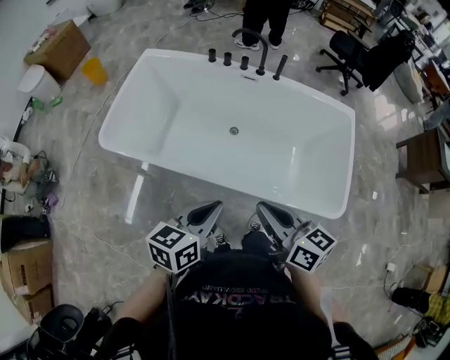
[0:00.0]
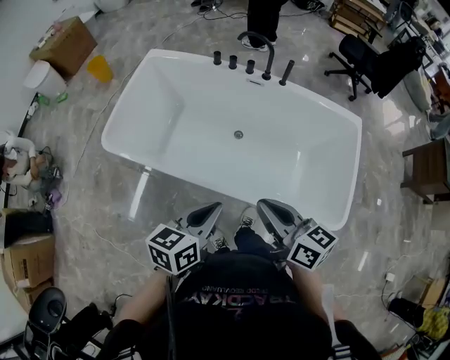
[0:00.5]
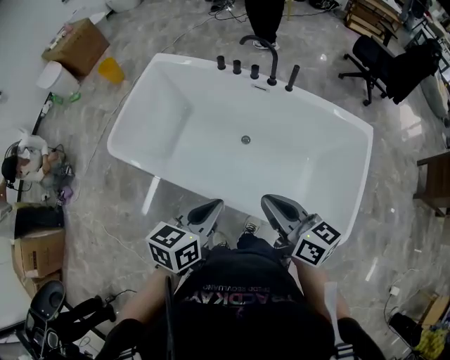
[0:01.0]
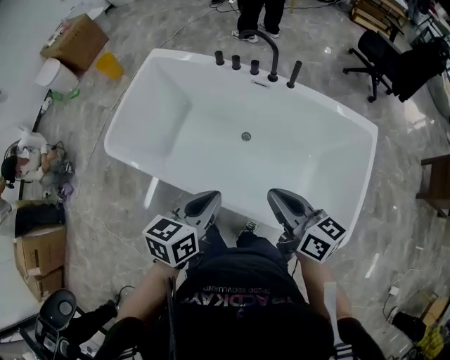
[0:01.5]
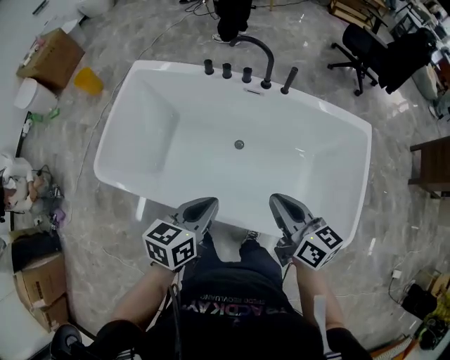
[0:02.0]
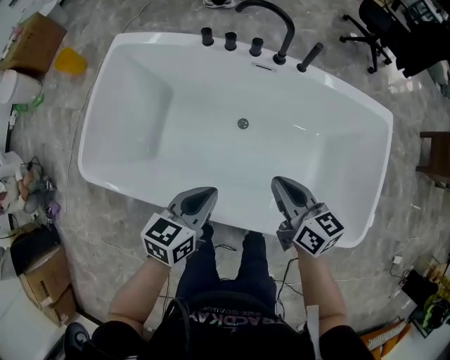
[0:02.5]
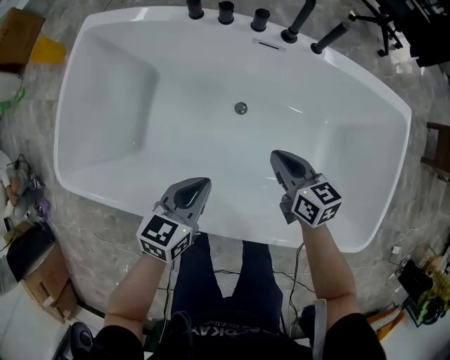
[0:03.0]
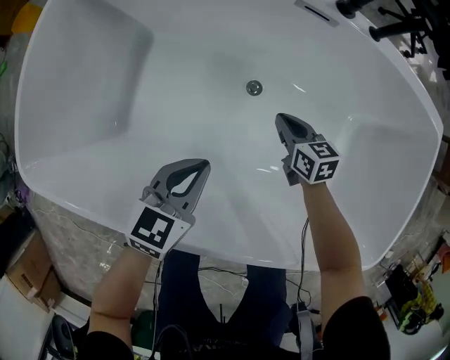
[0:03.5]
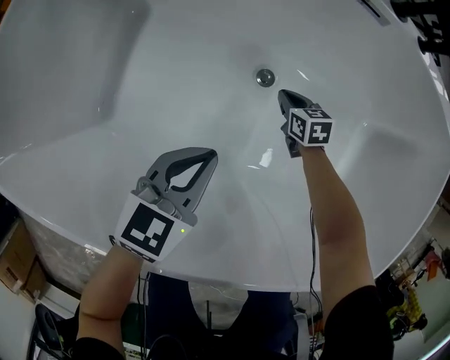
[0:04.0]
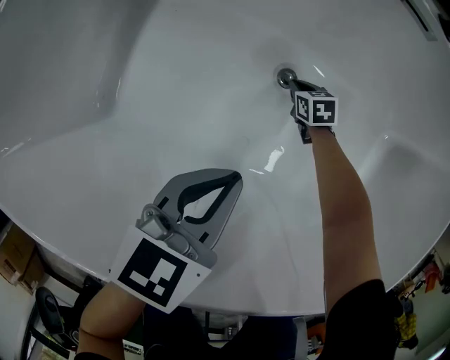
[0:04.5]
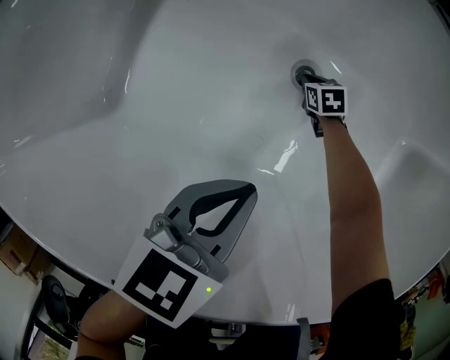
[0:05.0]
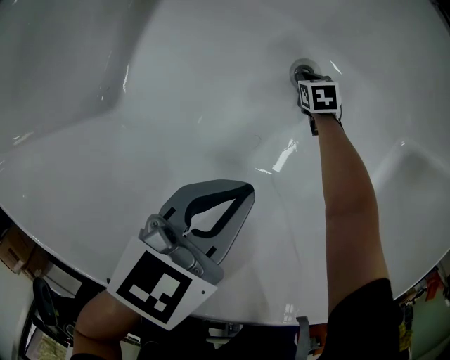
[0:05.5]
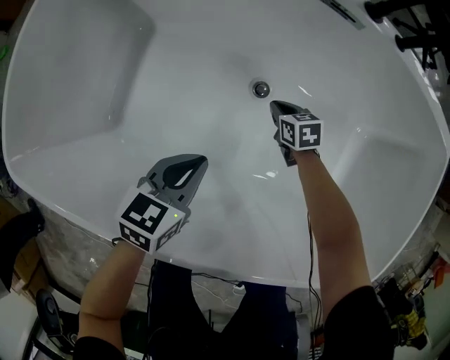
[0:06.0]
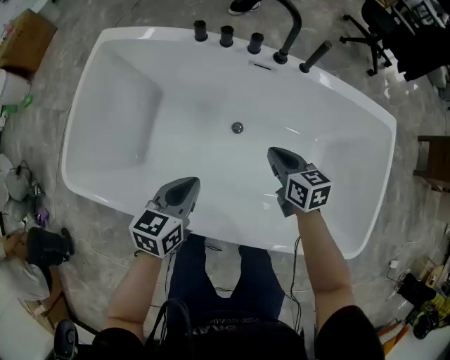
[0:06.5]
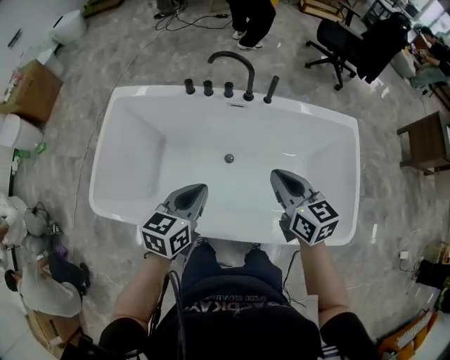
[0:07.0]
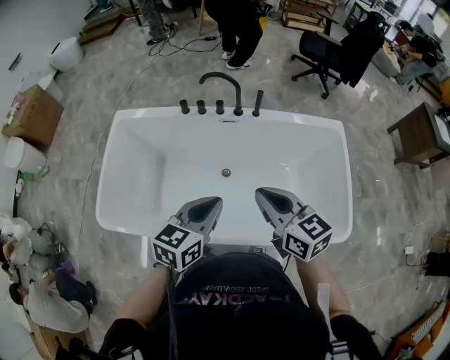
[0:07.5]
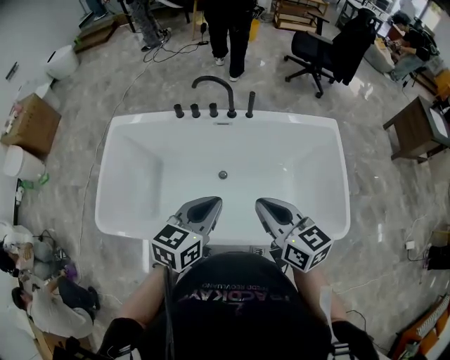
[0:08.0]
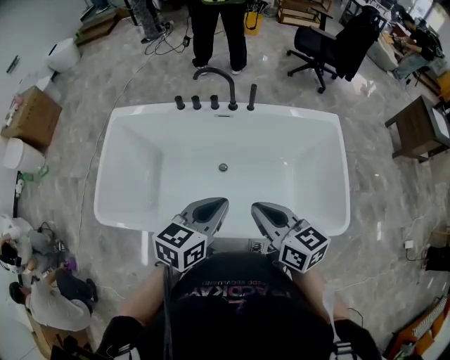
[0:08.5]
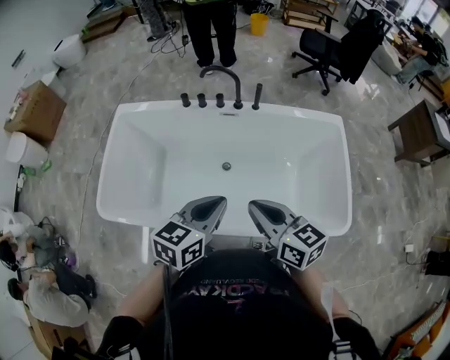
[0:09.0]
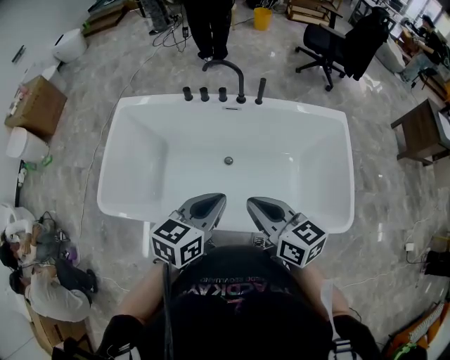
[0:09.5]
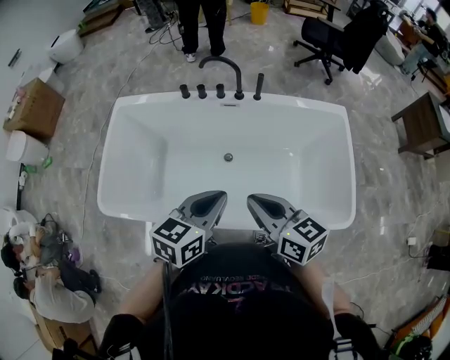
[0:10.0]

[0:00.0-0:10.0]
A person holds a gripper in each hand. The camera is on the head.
0:00.0 to 0:02.0: The grippers both shift forward by some 15 cm.
0:02.0 to 0:04.0: The left gripper moves downward and forward, some 35 cm; the right gripper travels downward and forward by roughly 70 cm, and tips its fingers downward by about 40 degrees.
0:04.0 to 0:06.0: The right gripper goes downward and returns, roughly 15 cm each way.
0:06.0 to 0:08.0: The left gripper goes about 40 cm upward, and changes its angle by approximately 20 degrees, while the right gripper heads upward, covering about 60 cm, and angles its fingers upward, by roughly 40 degrees.
0:08.0 to 0:10.0: There are only small adjustments of the grippers.

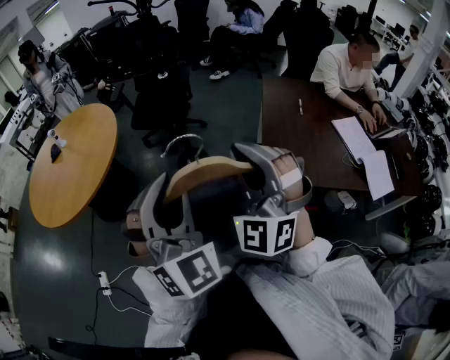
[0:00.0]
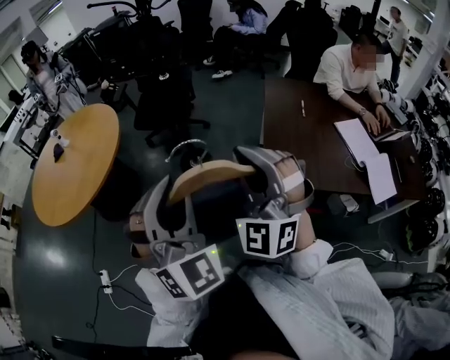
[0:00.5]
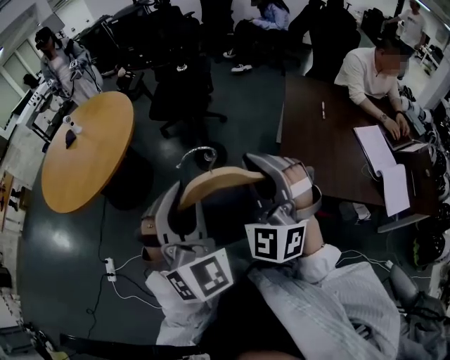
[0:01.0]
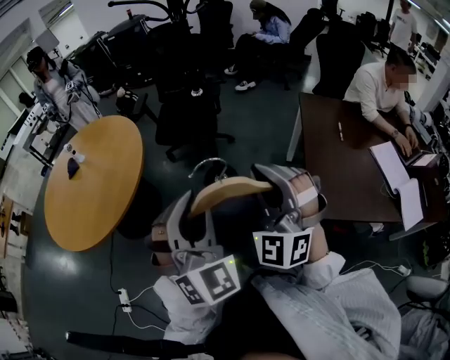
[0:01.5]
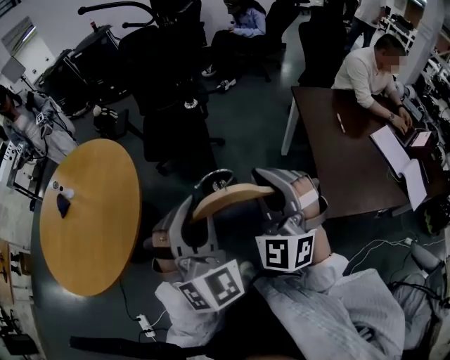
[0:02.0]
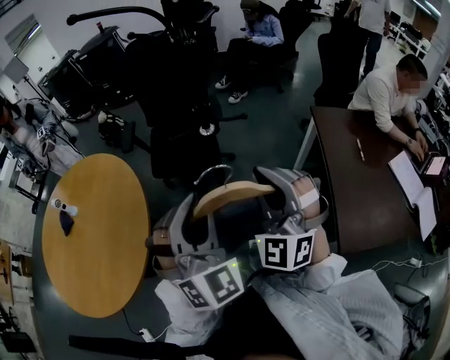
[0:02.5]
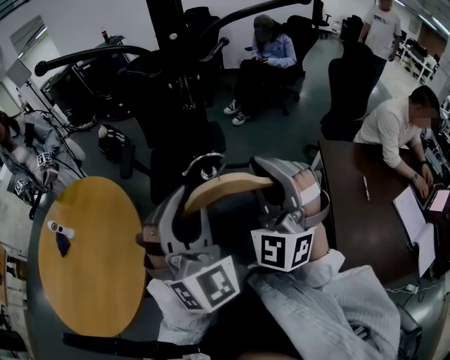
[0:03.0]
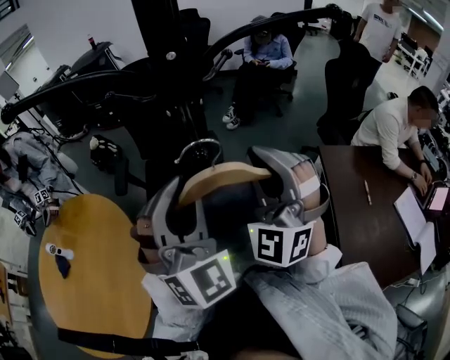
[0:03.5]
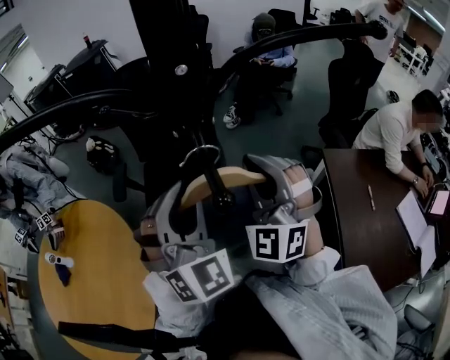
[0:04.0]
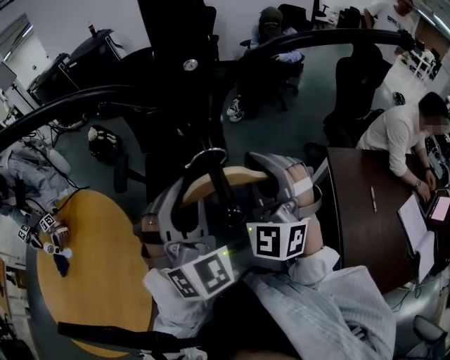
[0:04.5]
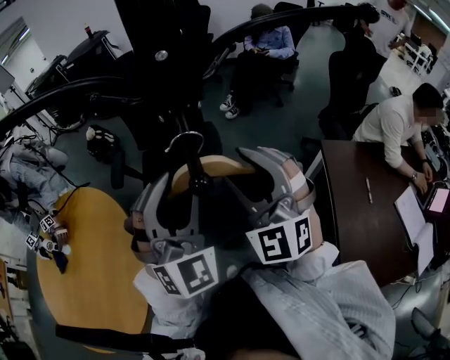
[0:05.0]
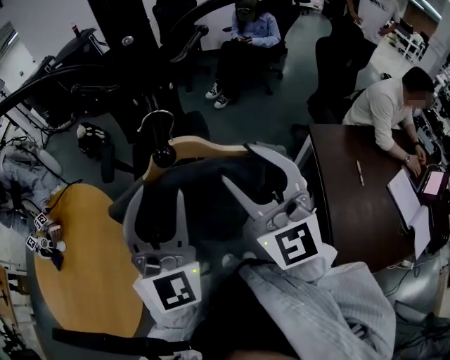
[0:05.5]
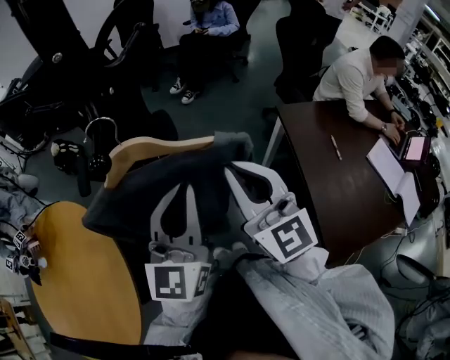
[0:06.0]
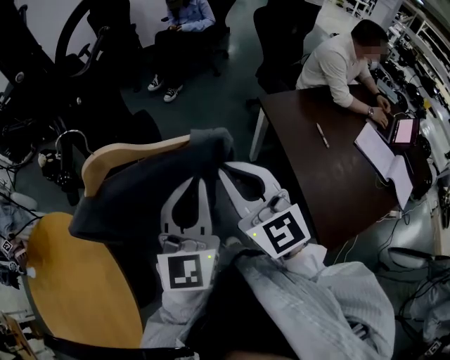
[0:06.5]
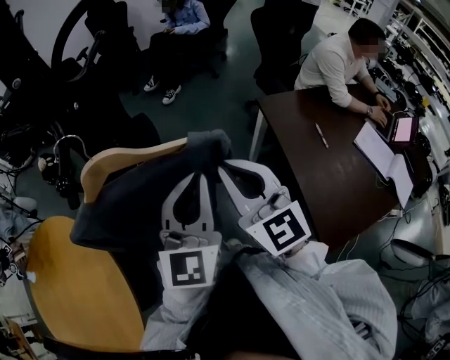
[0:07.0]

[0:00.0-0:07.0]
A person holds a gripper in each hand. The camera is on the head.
0:00.0 to 0:02.0: The two grippers go some 40 cm forward and to the left.
0:02.0 to 0:03.5: Both grippers are carried forward, some 50 cm.
0:03.5 to 0:05.0: The left gripper goes approximately 10 cm forward; the right gripper is displaced forward and to the left by roughly 10 cm, changes its angle by approximately 20 degrees, and opens.
0:05.0 to 0:07.0: The left gripper travels to the right and downward by approximately 25 cm, rotates around the line of its fingers by roughly 50 degrees, counterclockwise from behind, and closes up. The right gripper shifts roughly 20 cm to the right, backward and downward, rotates around the line of its fingers by approximately 50 degrees, clockwise from behind, and closes.

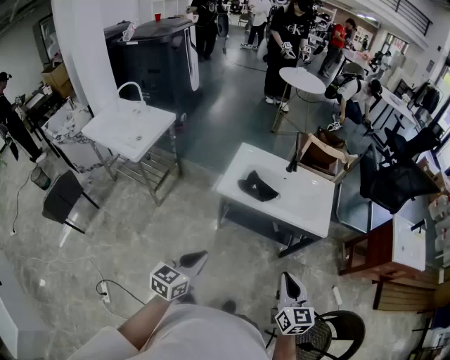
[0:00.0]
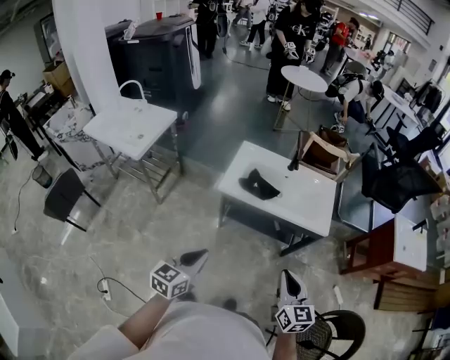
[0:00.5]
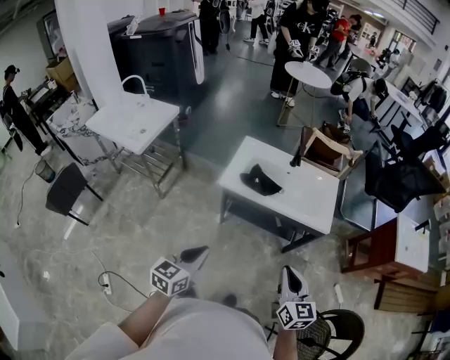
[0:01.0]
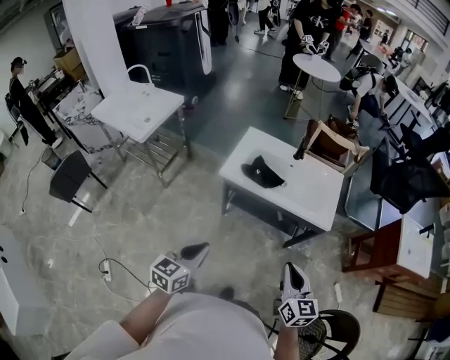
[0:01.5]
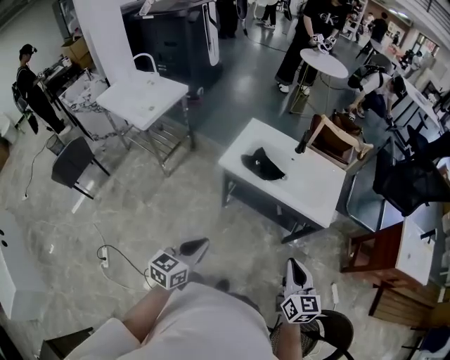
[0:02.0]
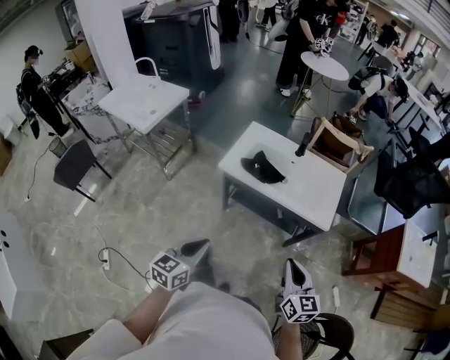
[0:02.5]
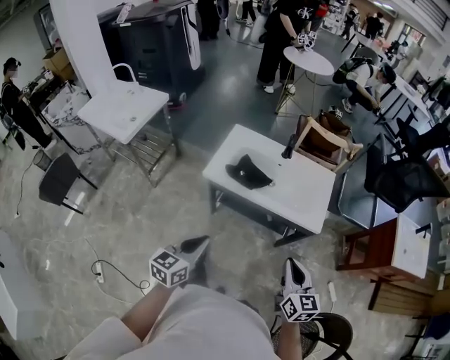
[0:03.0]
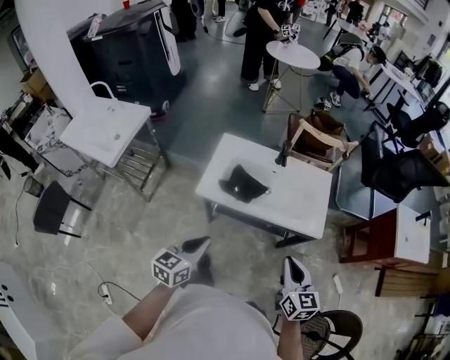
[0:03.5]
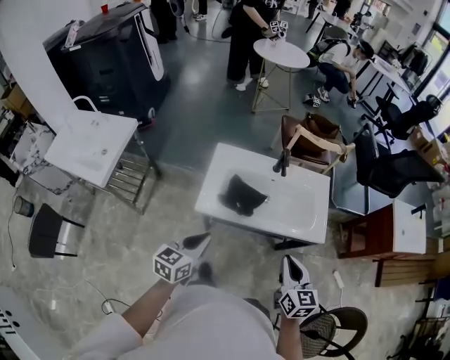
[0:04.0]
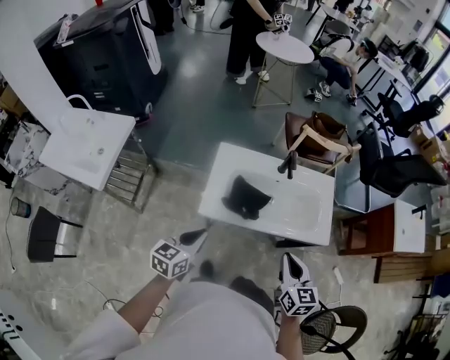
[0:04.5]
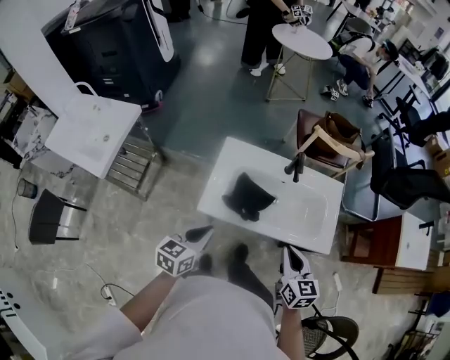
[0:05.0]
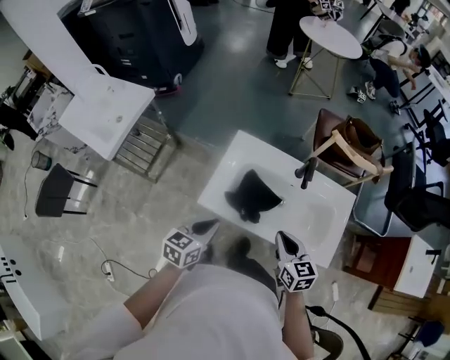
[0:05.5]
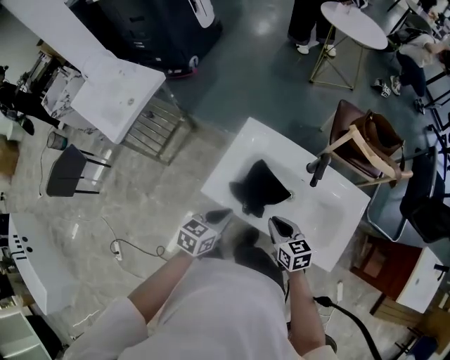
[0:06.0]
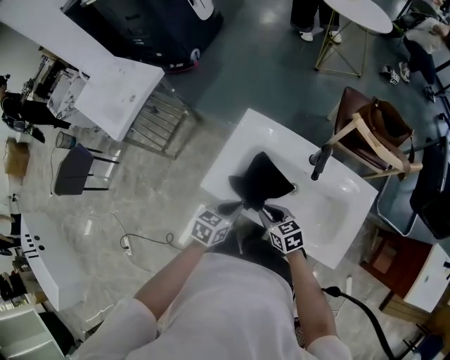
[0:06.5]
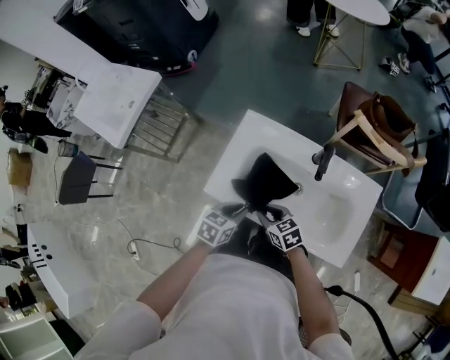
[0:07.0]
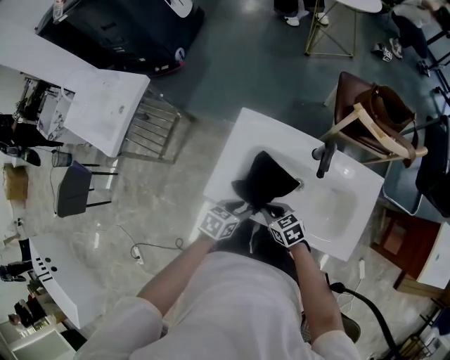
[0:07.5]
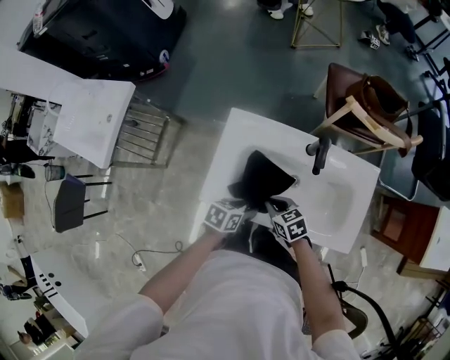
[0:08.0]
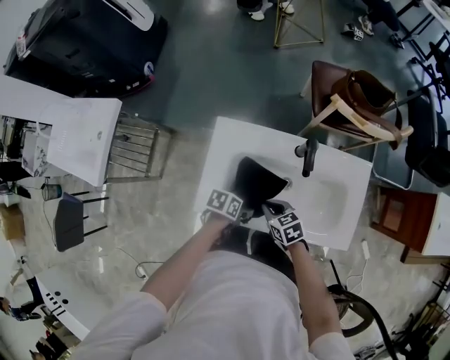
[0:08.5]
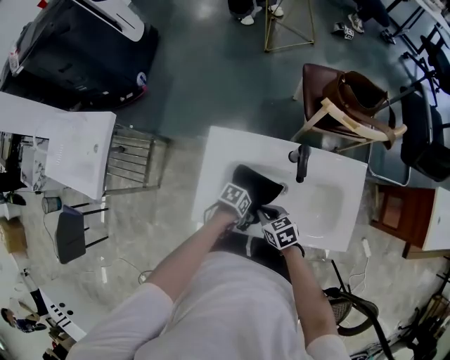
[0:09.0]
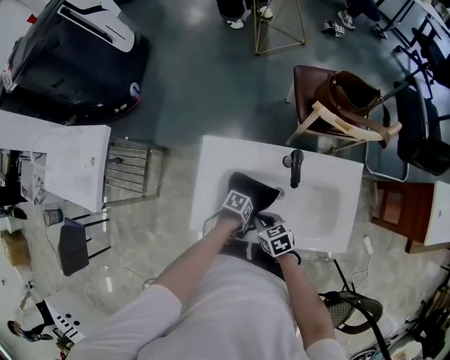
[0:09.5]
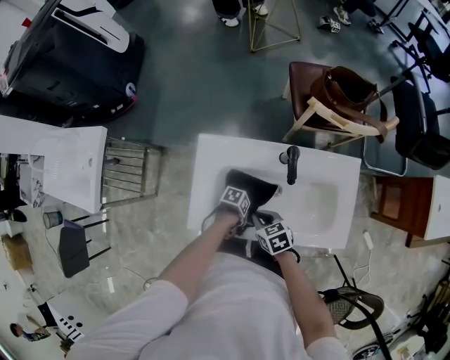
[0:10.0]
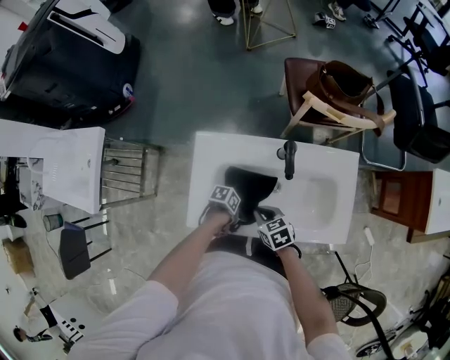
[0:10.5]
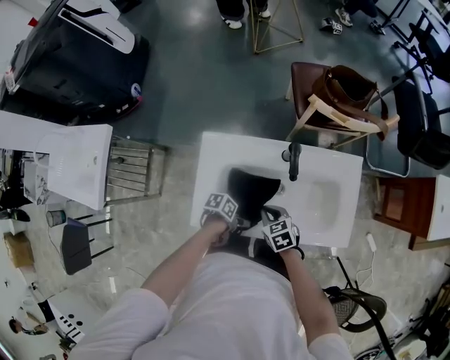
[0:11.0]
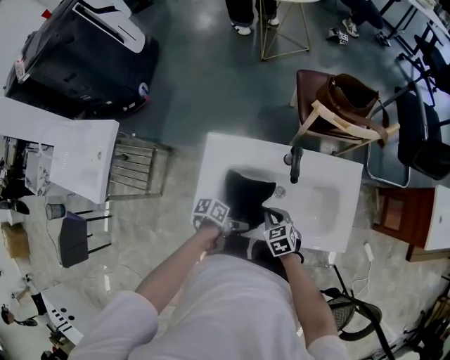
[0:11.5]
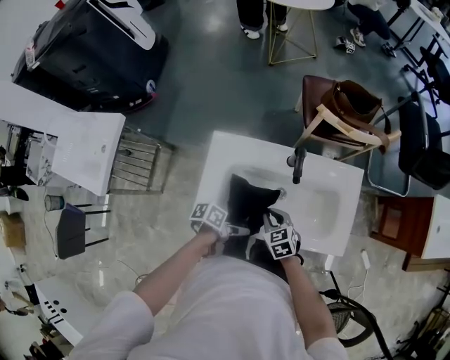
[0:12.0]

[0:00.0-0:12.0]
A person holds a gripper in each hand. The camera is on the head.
0:00.0 to 0:02.0: The grippers both shift to the right by approximately 10 cm.
0:02.0 to 0:04.0: The left gripper goes about 30 cm forward; the right gripper travels forward and to the left by some 25 cm.
0:04.0 to 0:06.0: The left gripper changes place by roughly 25 cm. The right gripper changes place by roughly 30 cm, and rotates roughly 40 degrees.
0:06.0 to 0:08.0: Both grippers travel together downward, about 10 cm. The left gripper rotates approximately 30 degrees, and opens up.
0:08.0 to 0:10.0: The left gripper travels downward by some 10 cm, rotates approximately 40 degrees, and opens its fingers.
0:10.0 to 0:12.0: The left gripper is displaced upward by approximately 15 cm, and turns by approximately 30 degrees.
